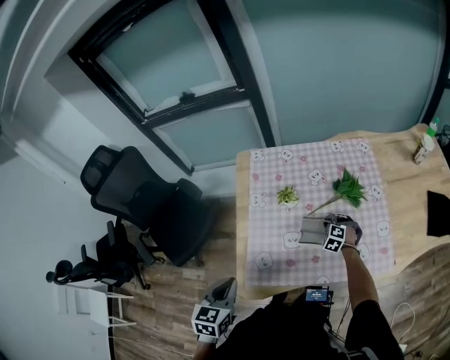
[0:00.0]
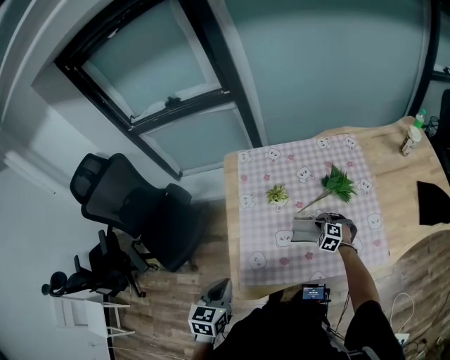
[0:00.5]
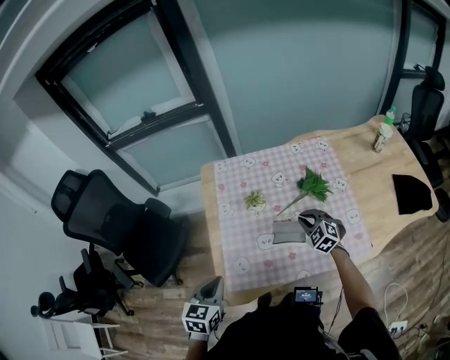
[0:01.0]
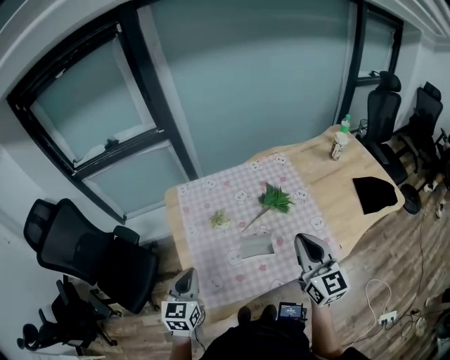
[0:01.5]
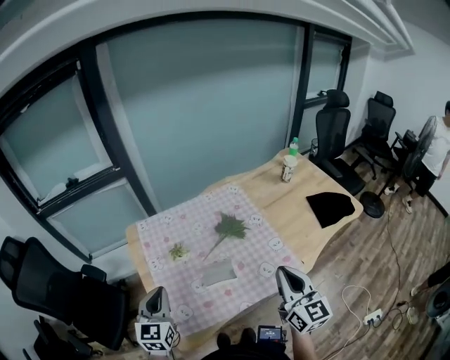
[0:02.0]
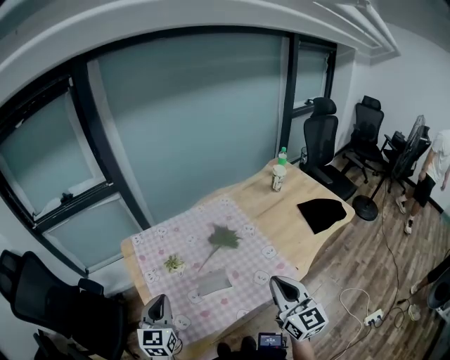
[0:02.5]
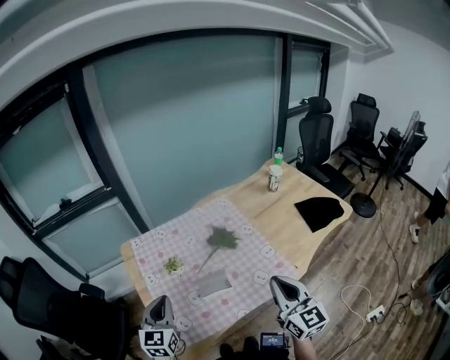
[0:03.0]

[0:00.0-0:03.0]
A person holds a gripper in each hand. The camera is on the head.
0:00.0 to 0:01.5: The right gripper heads upward and backward, covering some 40 cm, and tilts its fingers about 60 degrees upward. The left gripper moves forward, approximately 10 cm.
0:01.5 to 0:03.0: The right gripper heads backward and to the right, covering roughly 10 cm. The left gripper travels to the right by about 5 cm.

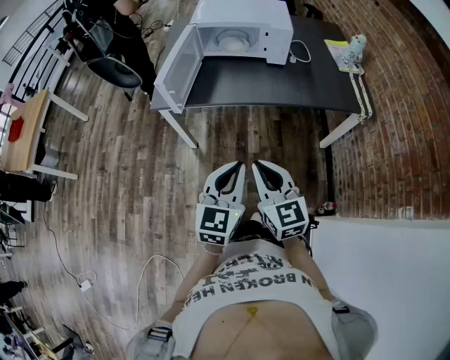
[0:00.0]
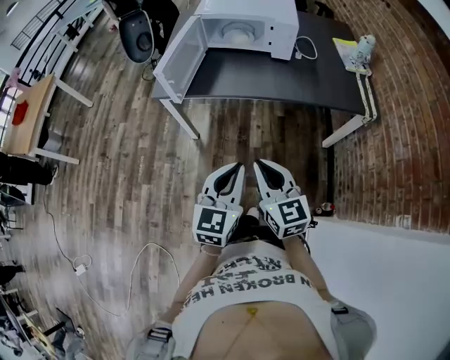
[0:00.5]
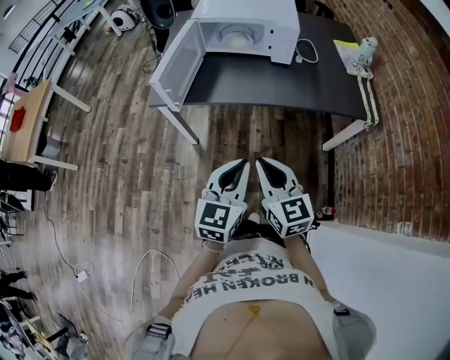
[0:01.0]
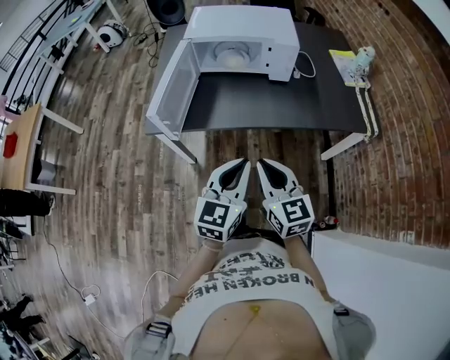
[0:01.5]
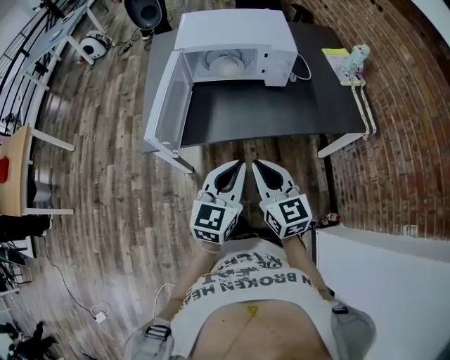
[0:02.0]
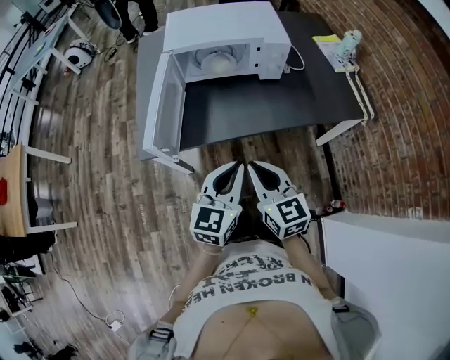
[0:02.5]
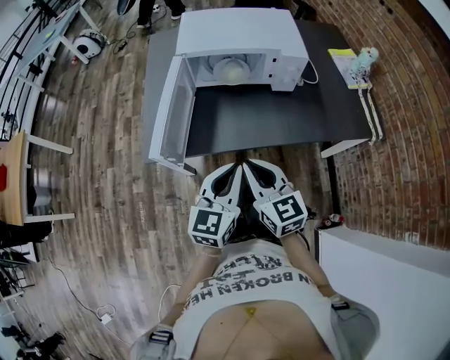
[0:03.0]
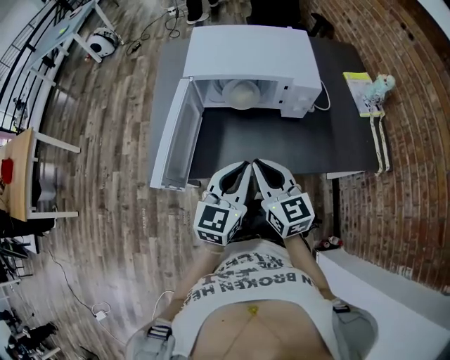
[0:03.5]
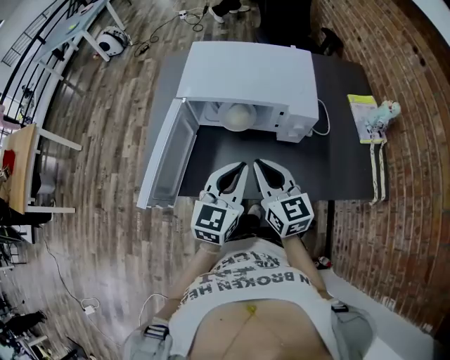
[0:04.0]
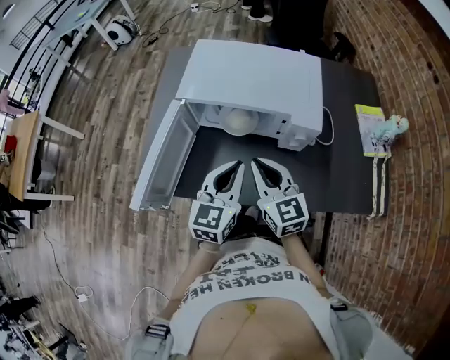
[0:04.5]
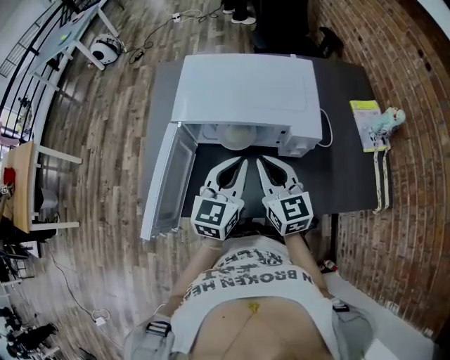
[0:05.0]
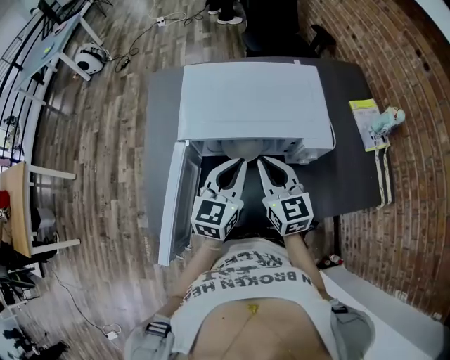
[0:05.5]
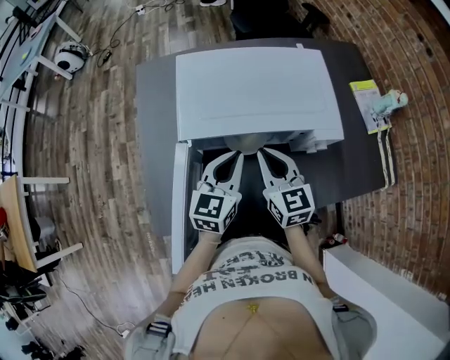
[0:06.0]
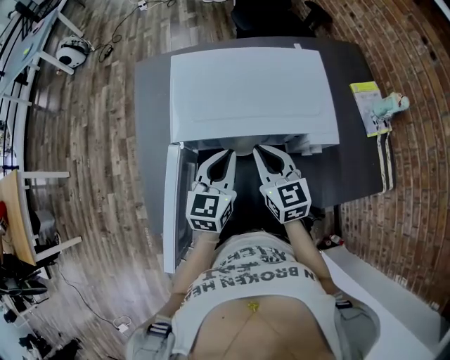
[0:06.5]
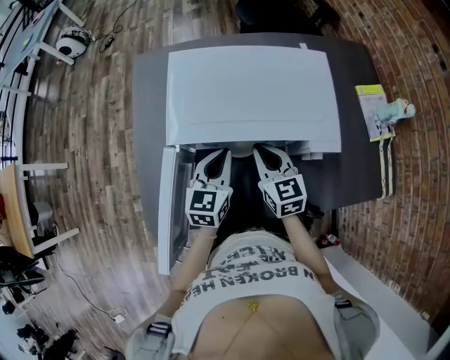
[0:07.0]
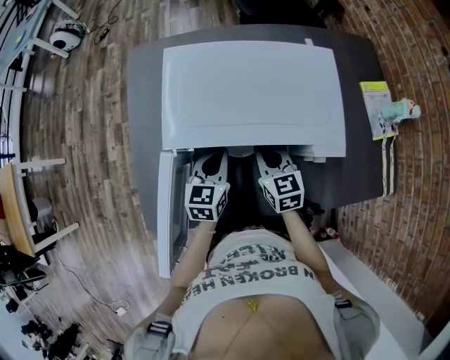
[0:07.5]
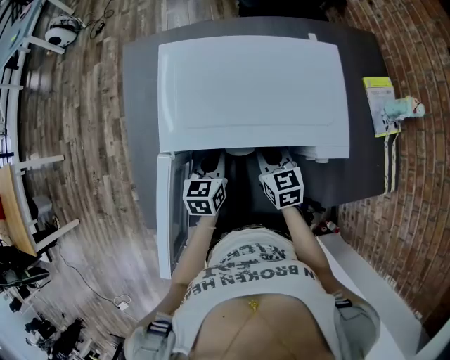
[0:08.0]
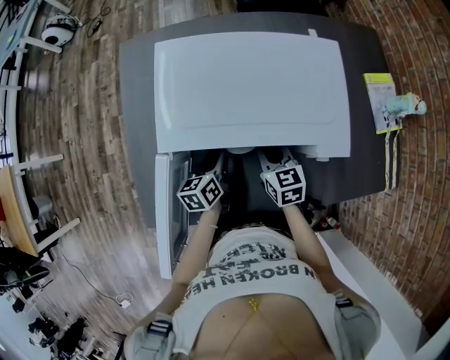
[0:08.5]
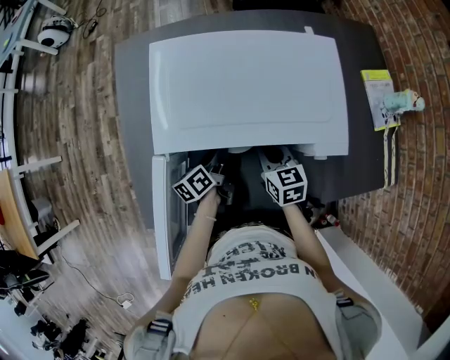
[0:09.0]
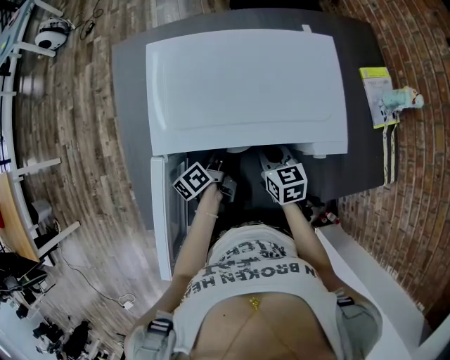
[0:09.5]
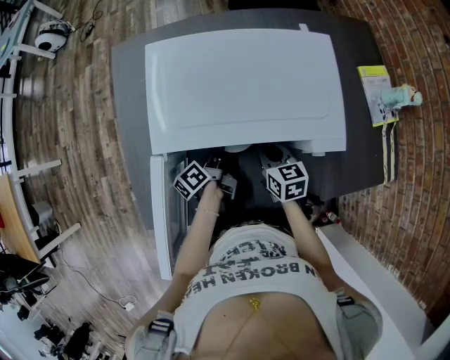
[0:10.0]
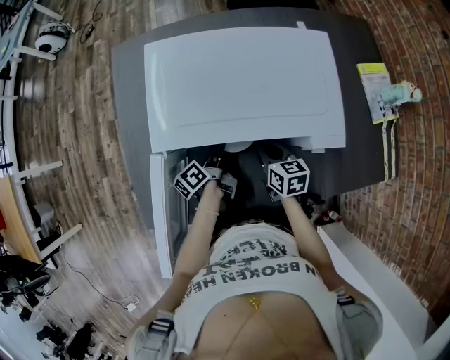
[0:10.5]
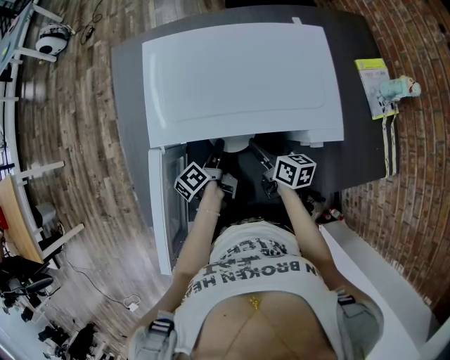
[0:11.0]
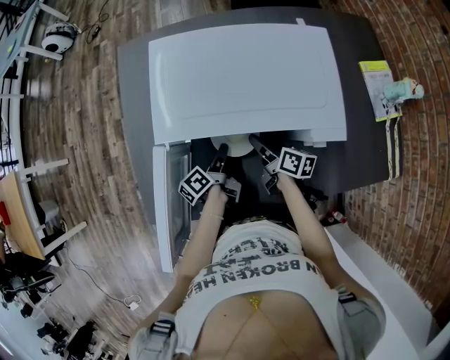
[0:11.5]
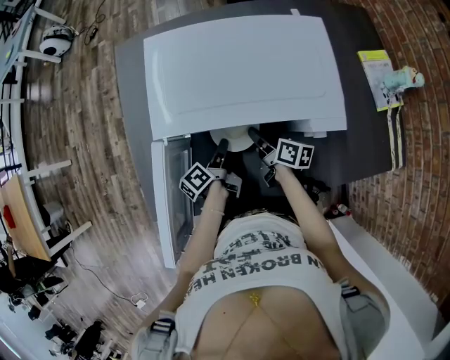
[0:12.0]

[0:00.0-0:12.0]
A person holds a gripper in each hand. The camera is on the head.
0:00.0 to 0:02.0: The grippers both shift forward by some 20 cm.
0:02.0 to 0:04.0: The two grippers go approximately 25 cm forward.
0:04.0 to 0:06.0: The left gripper travels forward and to the left by about 20 cm, while the right gripper is displaced forward by some 15 cm.
0:06.0 to 0:08.0: The two grippers go approximately 15 cm downward. The left gripper turns by approximately 20 degrees.
0:08.0 to 0:10.0: The left gripper goes approximately 5 cm downward, rotates around the line of its fingers by some 60 degrees, counterclockwise from behind, and opens, then closes again.
0:10.0 to 0:12.0: The right gripper swivels approximately 40 degrees, and opens, then closes once more.

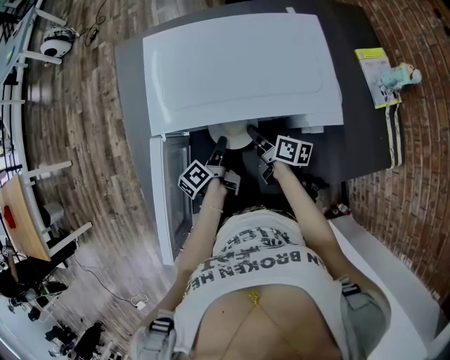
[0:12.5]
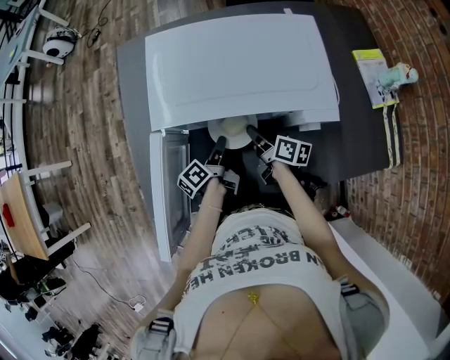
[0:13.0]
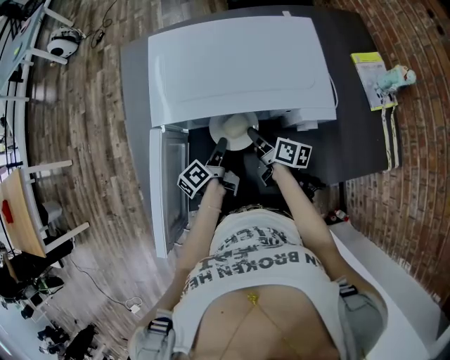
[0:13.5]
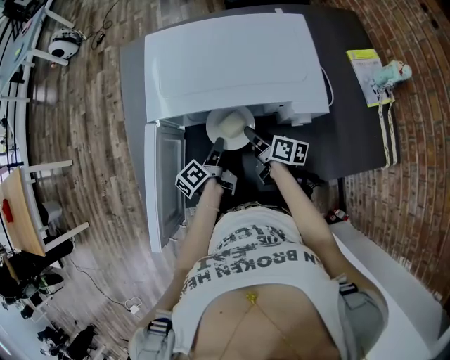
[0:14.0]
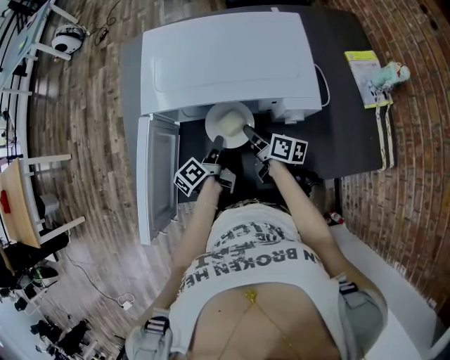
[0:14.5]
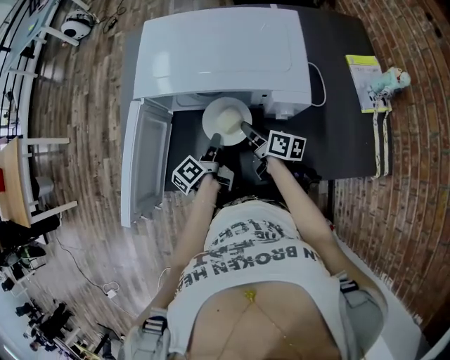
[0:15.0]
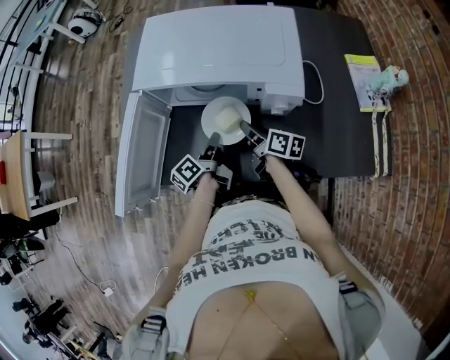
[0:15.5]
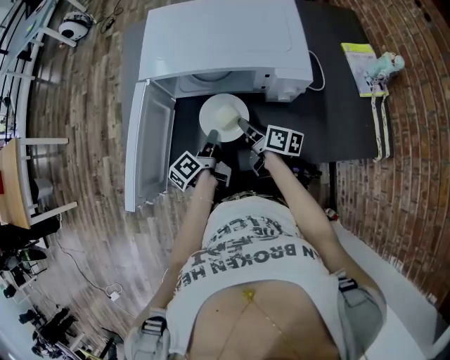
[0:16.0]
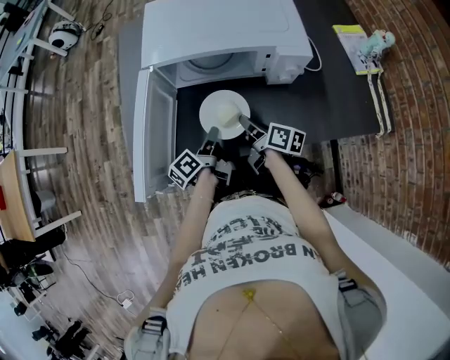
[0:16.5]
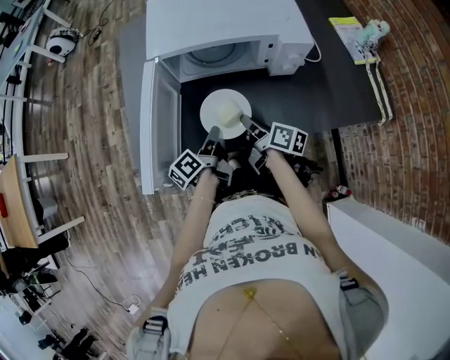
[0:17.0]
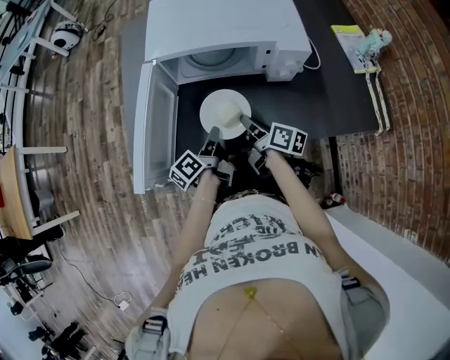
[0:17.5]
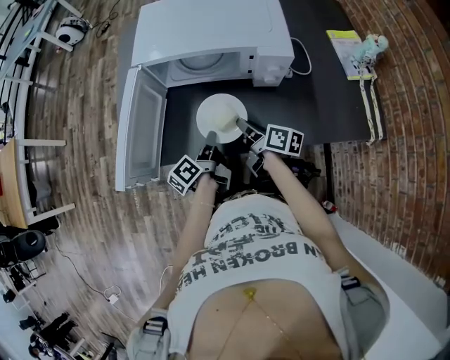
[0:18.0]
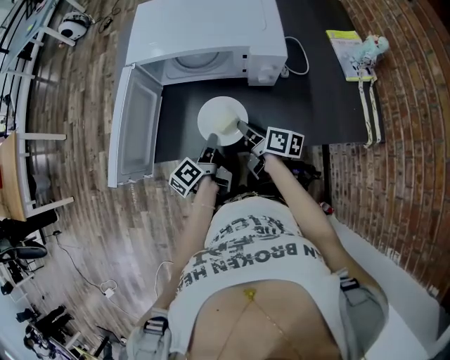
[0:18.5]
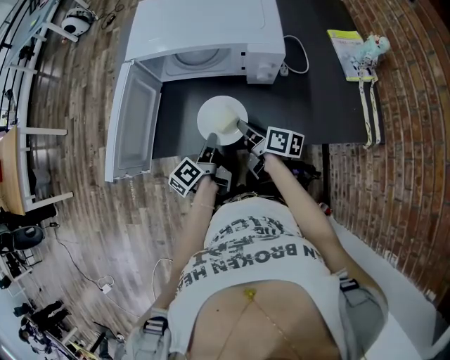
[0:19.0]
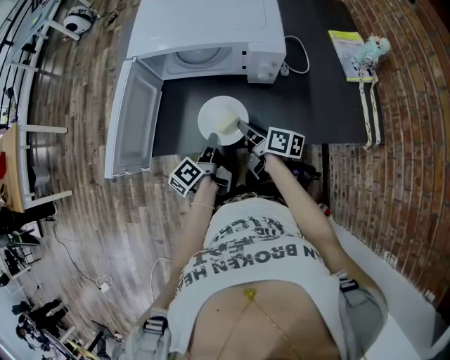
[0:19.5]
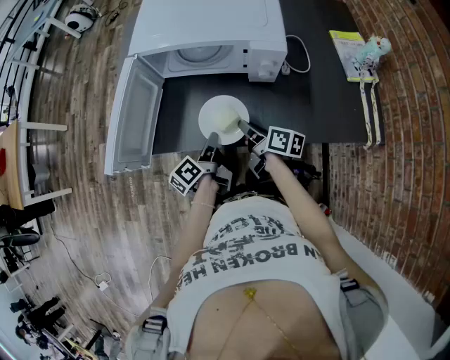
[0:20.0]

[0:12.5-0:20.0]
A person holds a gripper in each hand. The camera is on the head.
0:12.5 to 0:14.5: The left gripper moves approximately 5 cm.
0:14.5 to 0:16.5: Both grippers move backward, about 10 cm.
0:16.5 to 0:18.0: The left gripper moves roughly 5 cm, while the right gripper changes place by roughly 5 cm.
0:18.0 to 0:20.0: There are only small adjustments of the grippers.

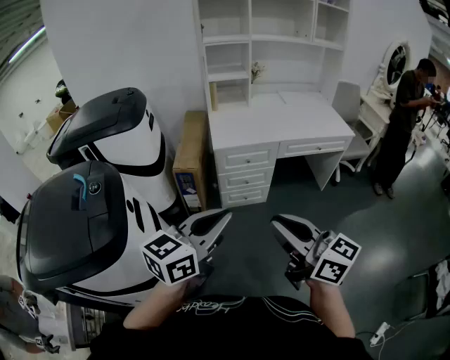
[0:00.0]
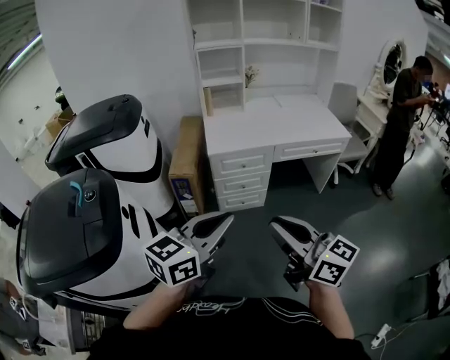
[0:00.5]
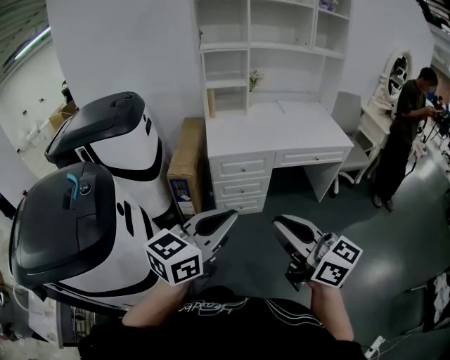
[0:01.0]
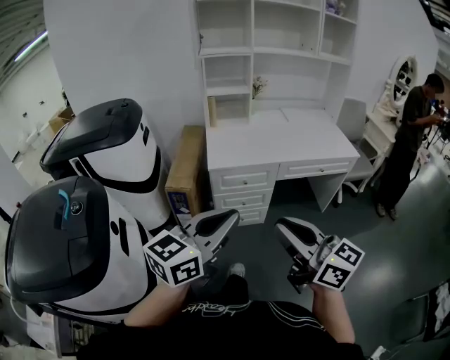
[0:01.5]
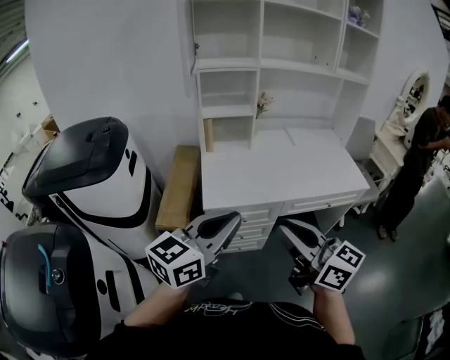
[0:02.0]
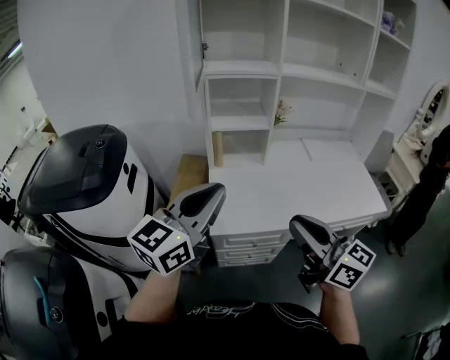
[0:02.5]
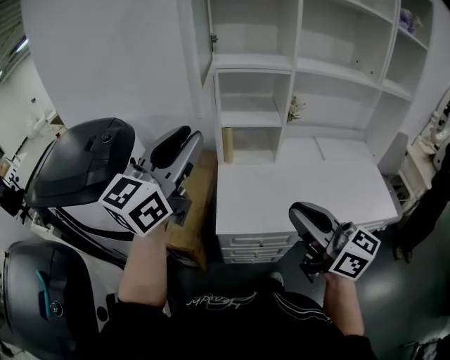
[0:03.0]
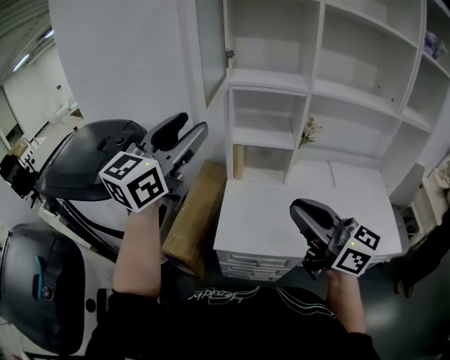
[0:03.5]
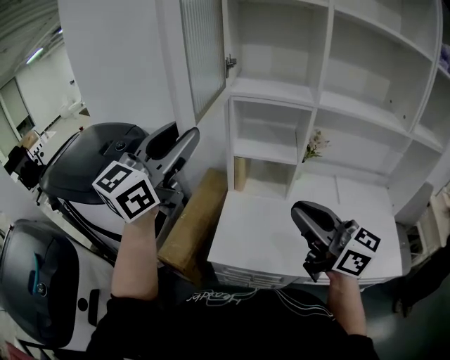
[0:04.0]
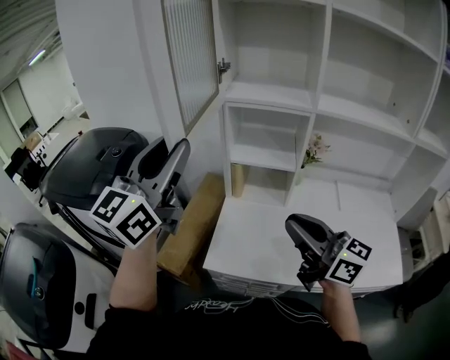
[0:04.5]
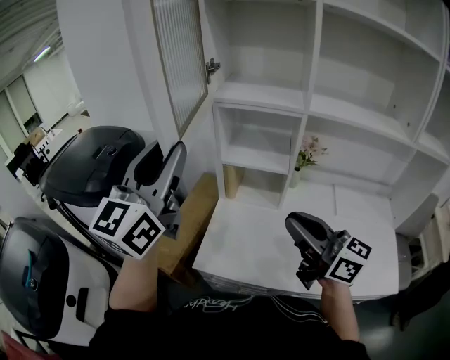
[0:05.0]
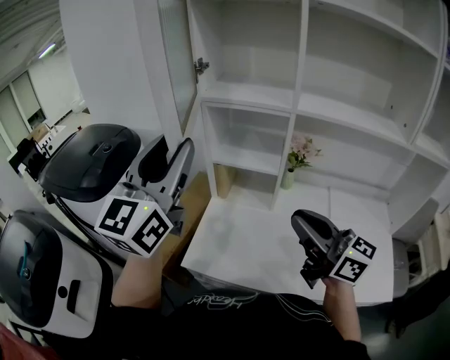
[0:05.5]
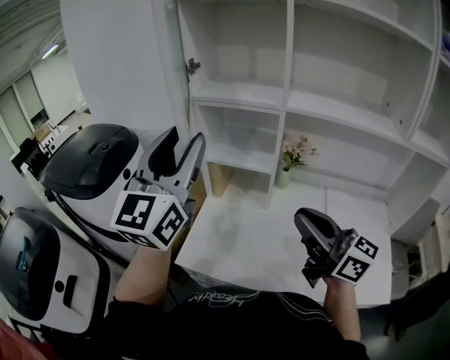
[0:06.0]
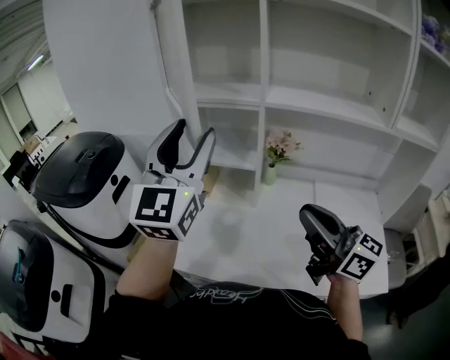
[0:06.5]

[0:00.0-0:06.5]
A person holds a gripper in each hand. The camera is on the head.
0:00.0 to 0:02.0: Both grippers move forward, about 35 cm.
0:02.0 to 0:04.5: The left gripper moves some 40 cm, swivels about 40 degrees, and opens its fingers; the right gripper ends up approximately 40 cm from where it was, and changes its angle by about 20 degrees.
0:04.5 to 0:06.5: The grippers both shift to the right by some 20 cm. The left gripper turns by roughly 20 degrees, and opens its fingers.
